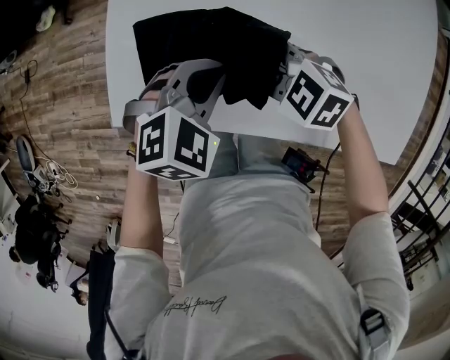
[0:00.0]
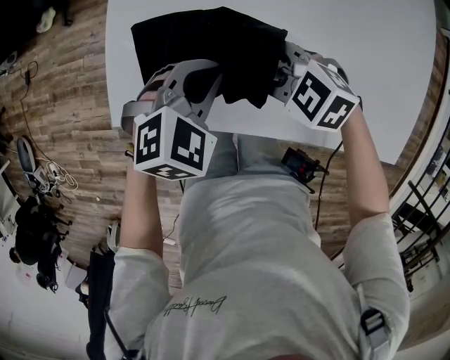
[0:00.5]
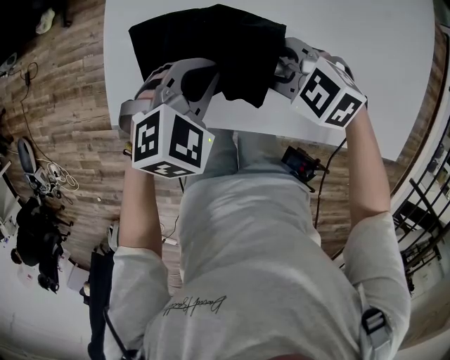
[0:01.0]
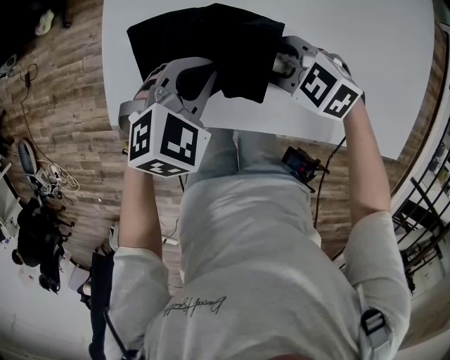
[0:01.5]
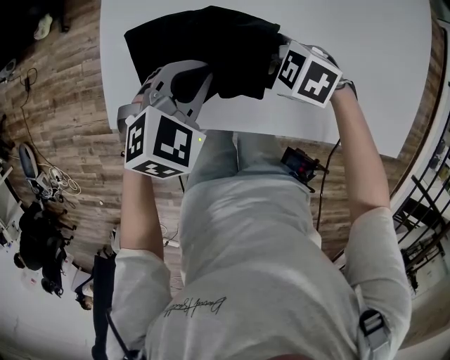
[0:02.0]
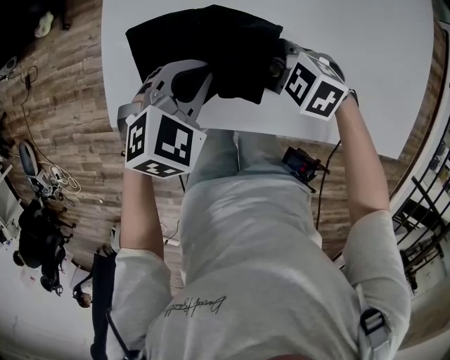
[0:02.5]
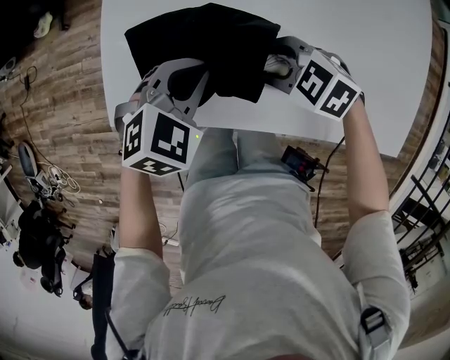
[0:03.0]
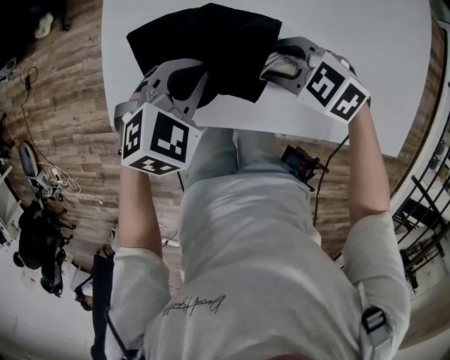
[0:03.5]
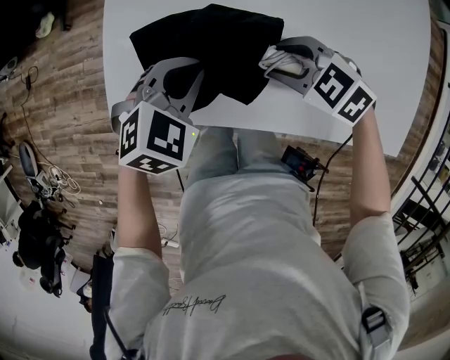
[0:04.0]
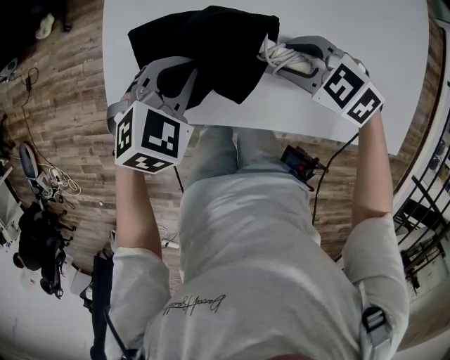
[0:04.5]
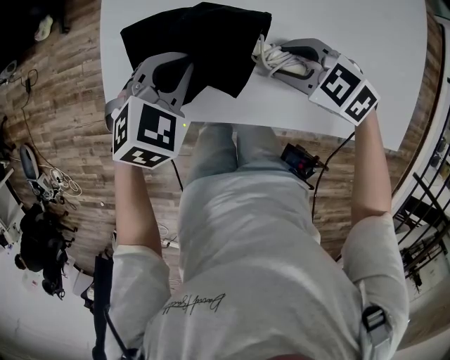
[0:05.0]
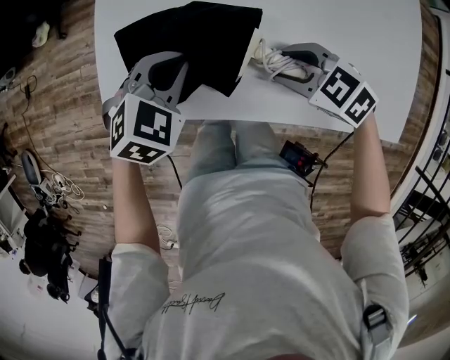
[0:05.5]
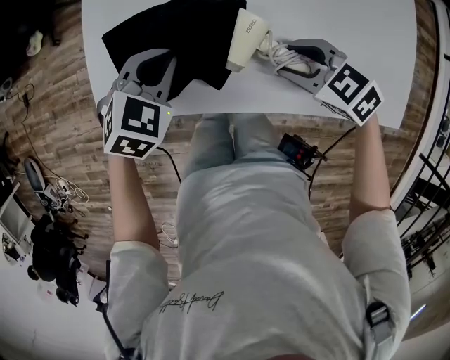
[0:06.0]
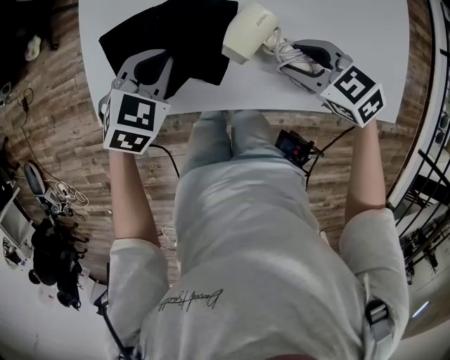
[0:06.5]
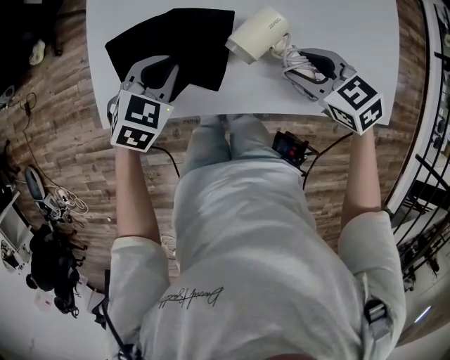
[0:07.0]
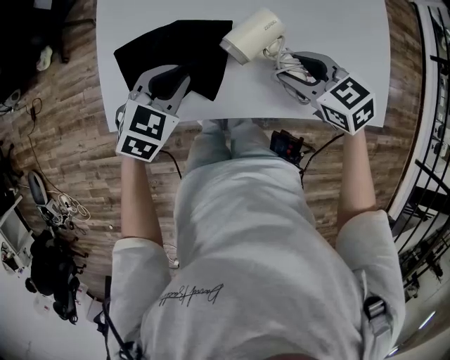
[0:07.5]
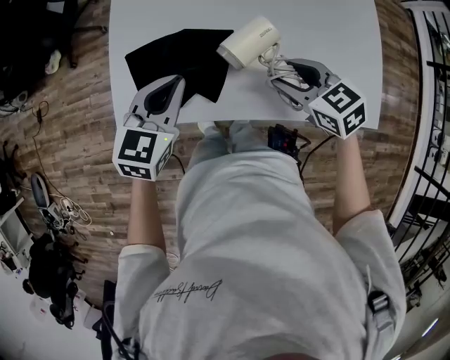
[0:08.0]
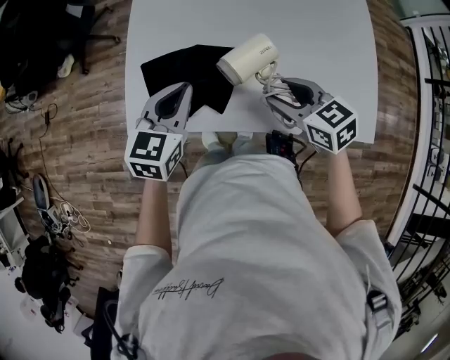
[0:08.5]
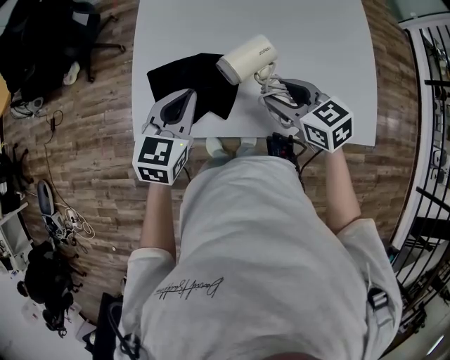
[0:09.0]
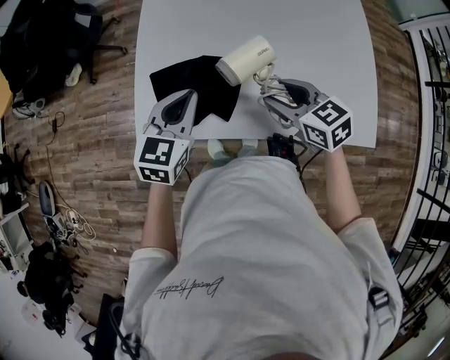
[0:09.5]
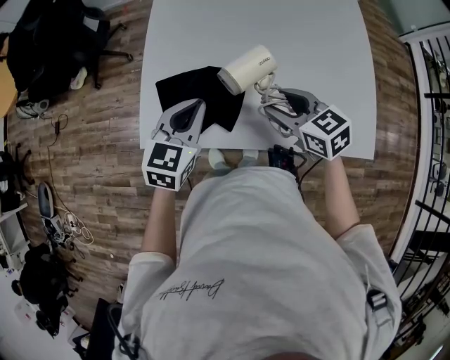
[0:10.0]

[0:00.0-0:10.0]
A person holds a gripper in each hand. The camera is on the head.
0:00.0 to 0:02.0: The grippers move only a little.
0:02.0 to 0:04.0: The right gripper shifts by roughly 5 cm.
0:04.0 to 0:06.0: The right gripper shifts by about 5 cm.
0:06.0 to 0:08.0: Both grippers travel together upward, roughly 10 cm. The right gripper changes its angle by some 20 degrees. The left gripper turns by roughly 30 degrees.
0:08.0 to 0:10.0: The right gripper moves about 5 cm.

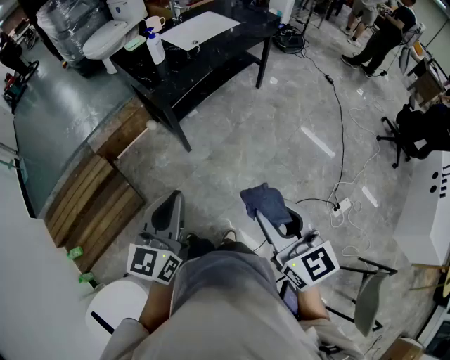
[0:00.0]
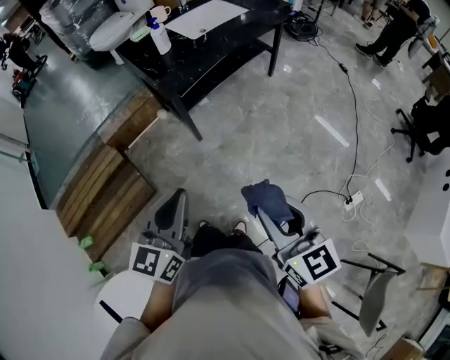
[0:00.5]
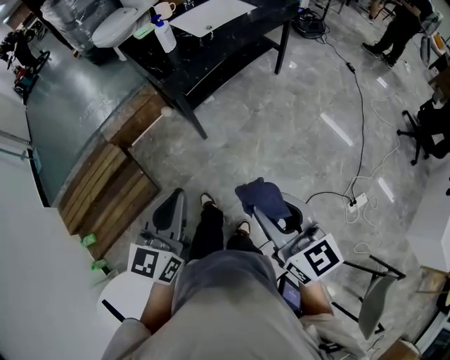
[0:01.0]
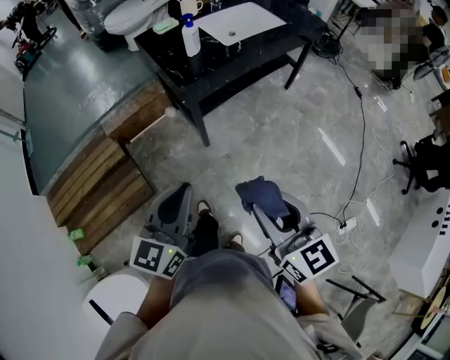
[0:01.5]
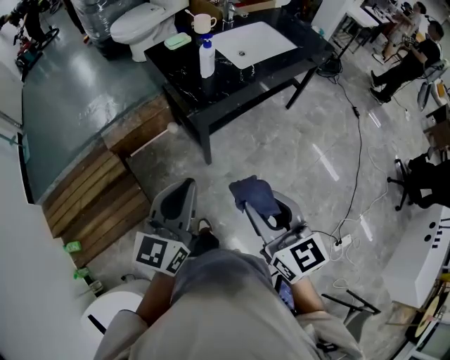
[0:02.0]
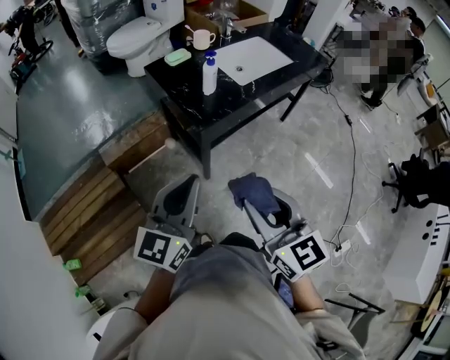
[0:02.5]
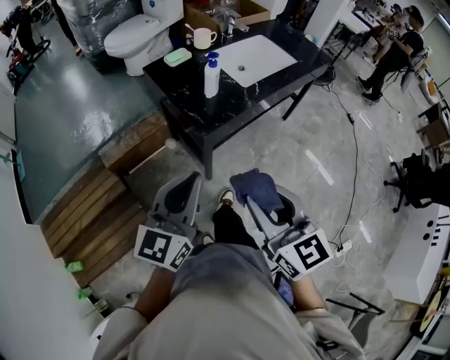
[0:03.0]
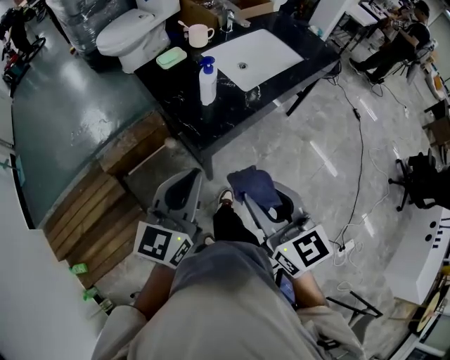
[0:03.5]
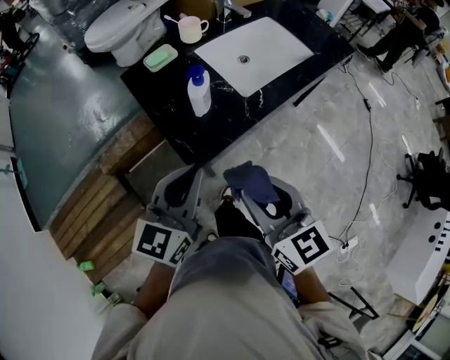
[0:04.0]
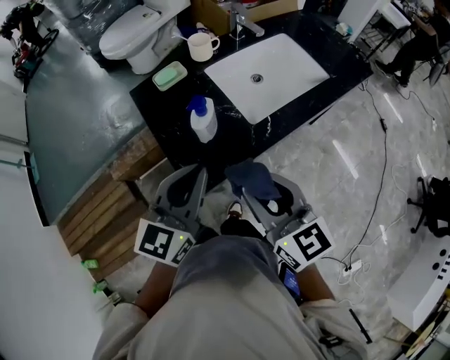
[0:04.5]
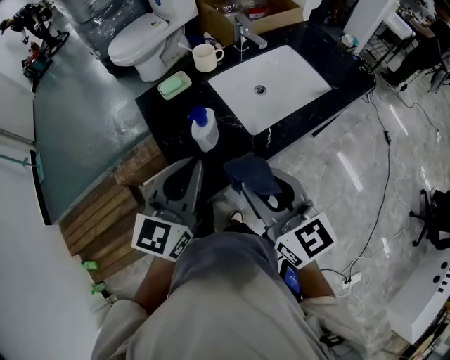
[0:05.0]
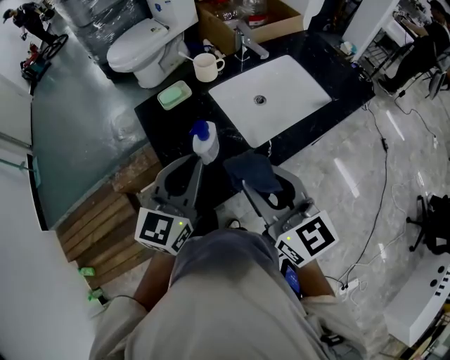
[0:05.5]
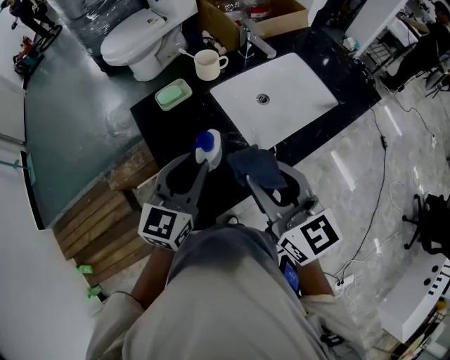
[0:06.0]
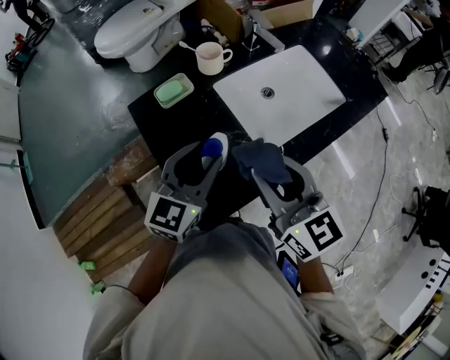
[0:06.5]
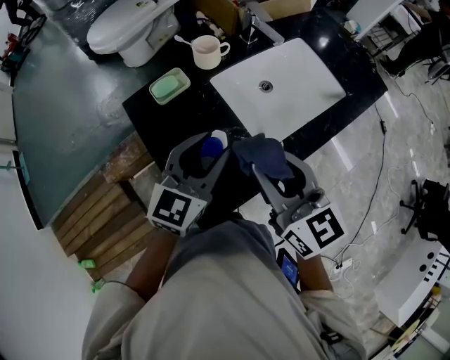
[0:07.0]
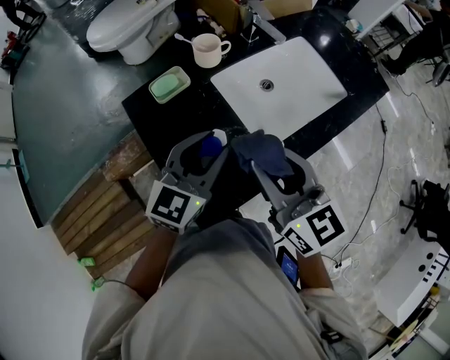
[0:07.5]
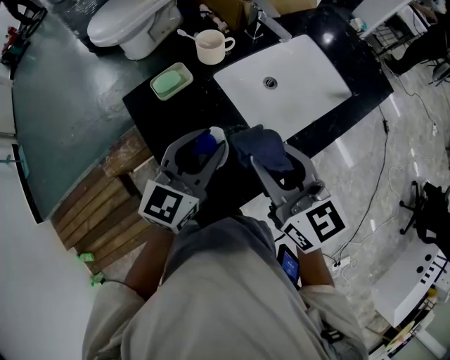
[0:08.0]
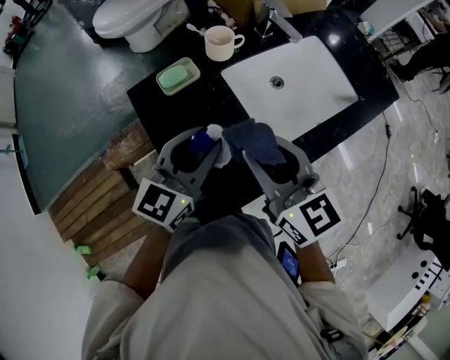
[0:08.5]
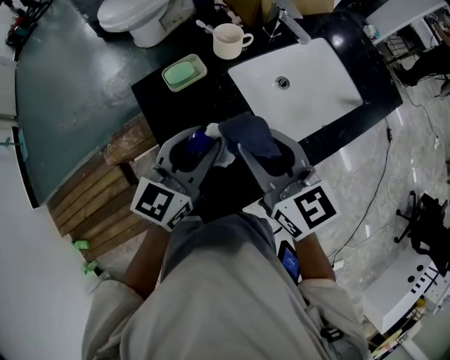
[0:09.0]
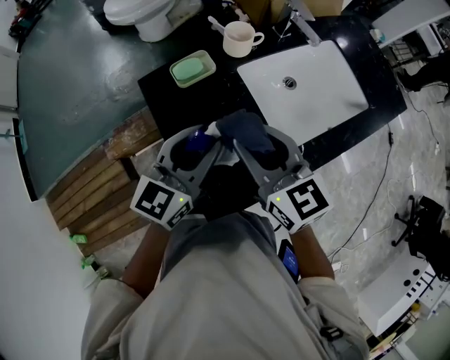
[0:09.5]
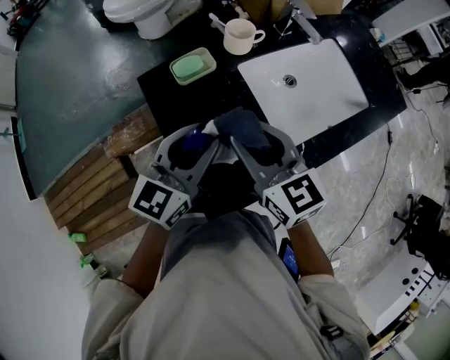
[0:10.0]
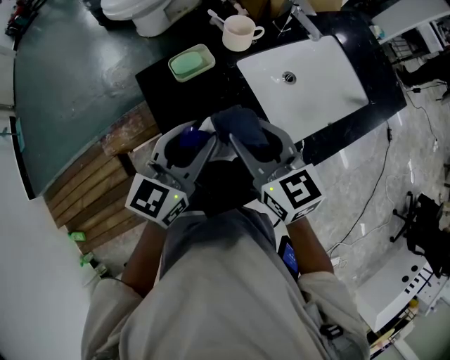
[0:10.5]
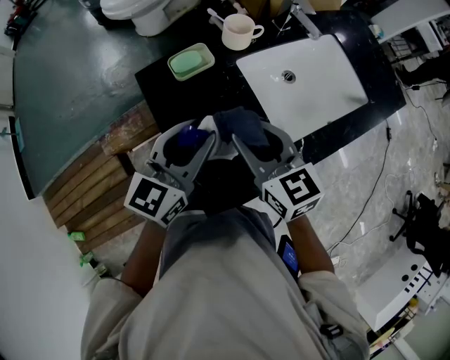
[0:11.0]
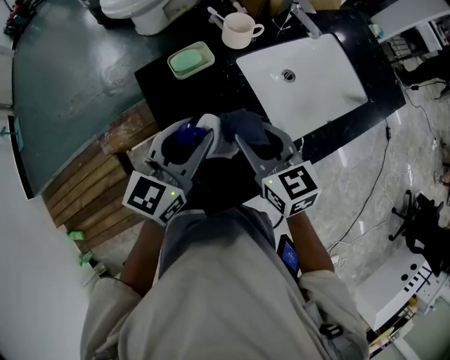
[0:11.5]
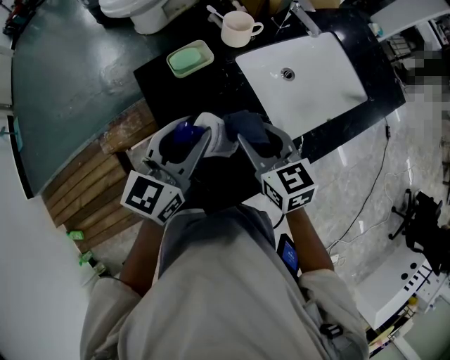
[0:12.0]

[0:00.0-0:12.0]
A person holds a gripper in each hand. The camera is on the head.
0:00.0 to 0:02.0: Both grippers move forward and to the left, about 25 cm.
0:02.0 to 0:04.0: The two grippers go approximately 25 cm forward.
0:04.0 to 0:06.0: Both grippers move forward, approximately 20 cm.
0:06.0 to 0:08.0: The grippers both shift forward by about 5 cm.
0:08.0 to 0:10.0: The two grippers go roughly 5 cm to the left.
0:10.0 to 0:12.0: The right gripper shifts about 5 cm downward.

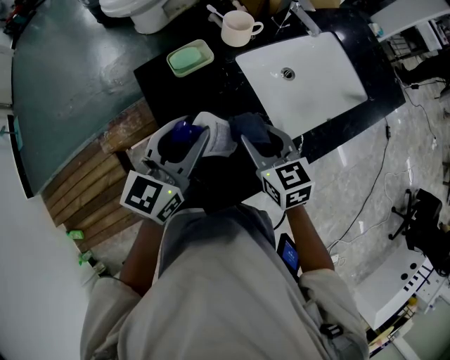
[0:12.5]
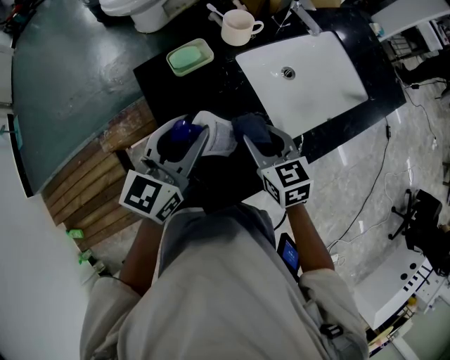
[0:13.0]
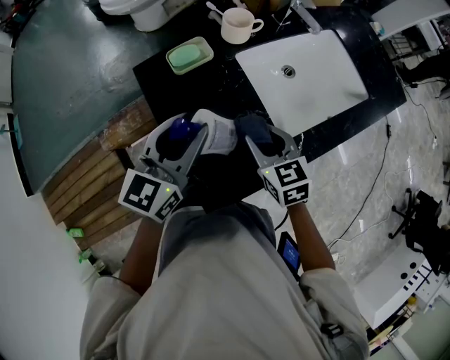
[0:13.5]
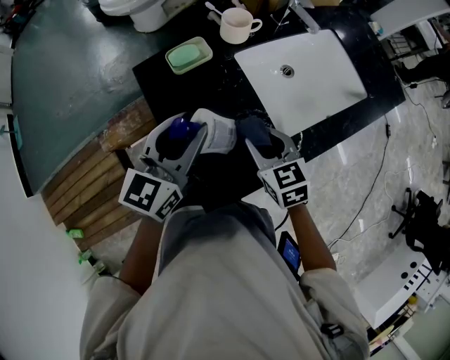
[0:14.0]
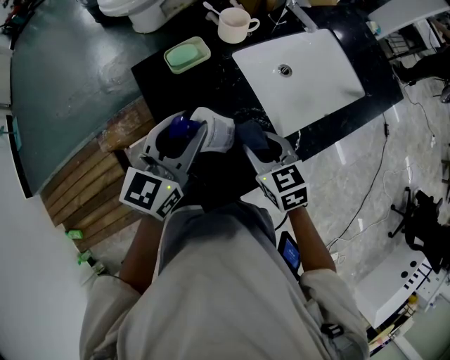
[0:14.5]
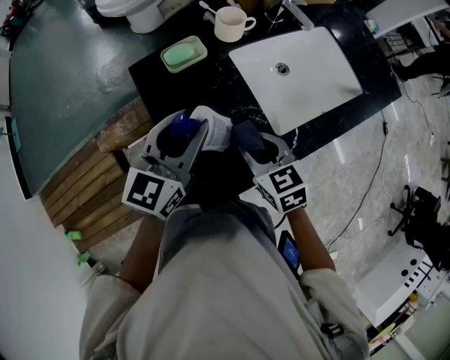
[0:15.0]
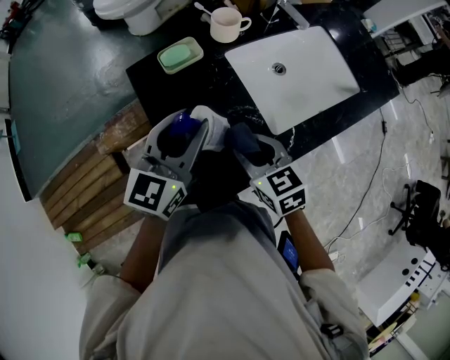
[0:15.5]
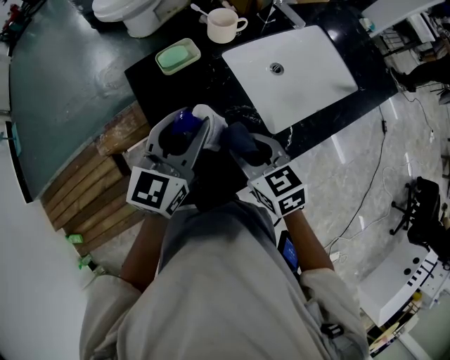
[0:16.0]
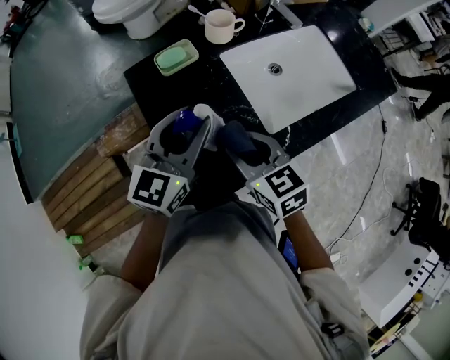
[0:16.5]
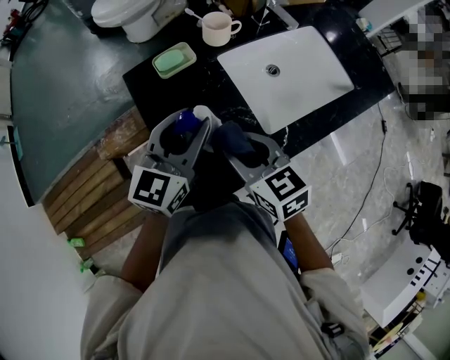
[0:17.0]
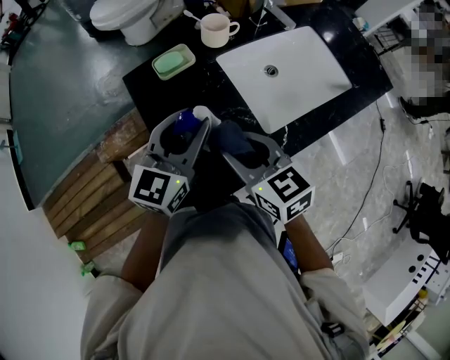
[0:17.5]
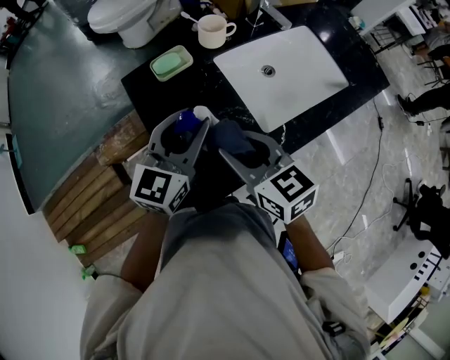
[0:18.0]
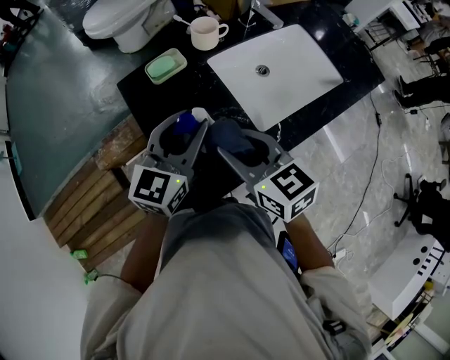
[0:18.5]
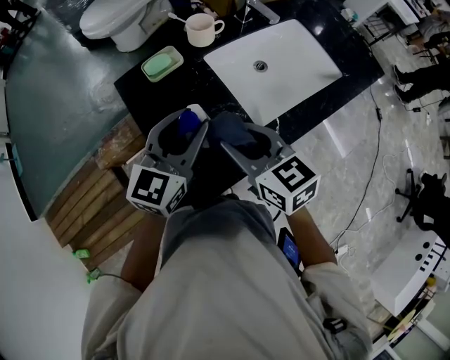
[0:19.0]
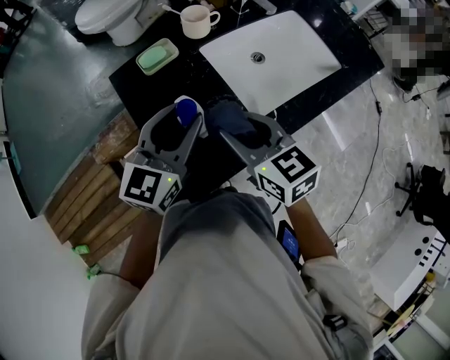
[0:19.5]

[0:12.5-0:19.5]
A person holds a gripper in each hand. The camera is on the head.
0:12.5 to 0:16.0: The grippers move only a little.
0:16.0 to 0:17.5: The right gripper goes roughly 5 cm upward.
0:17.5 to 0:19.5: The grippers stay close to where they were, moving slightly.
